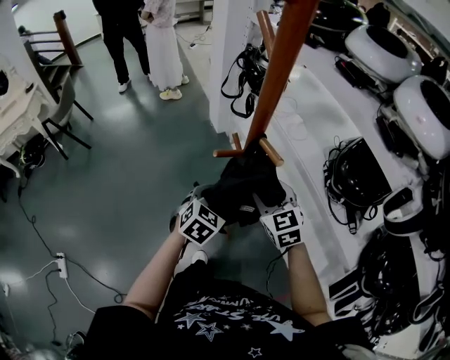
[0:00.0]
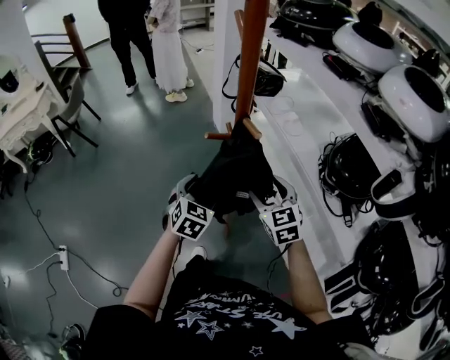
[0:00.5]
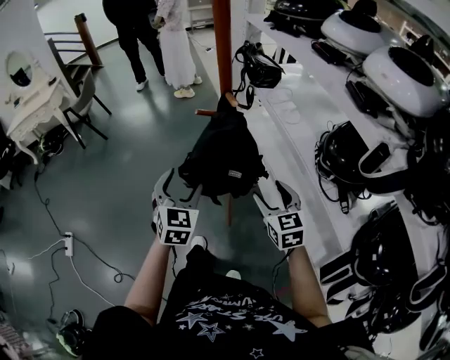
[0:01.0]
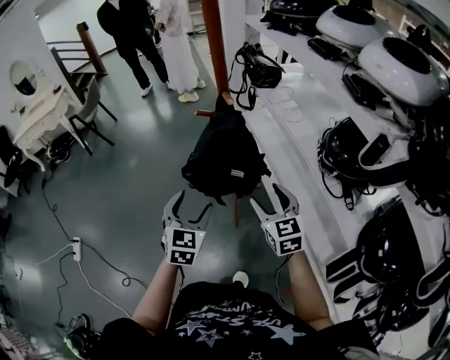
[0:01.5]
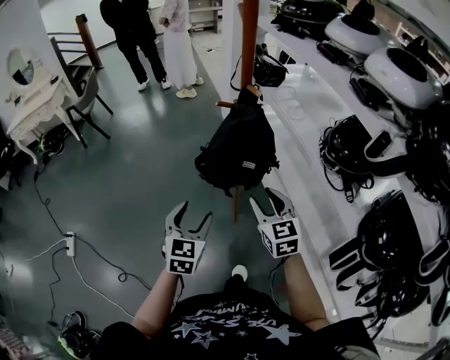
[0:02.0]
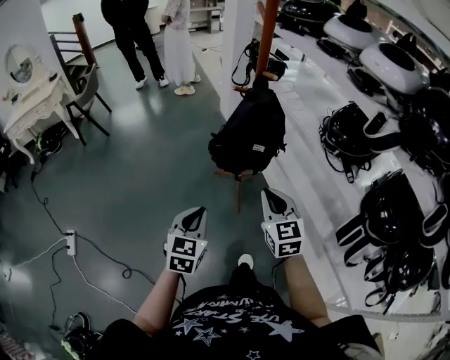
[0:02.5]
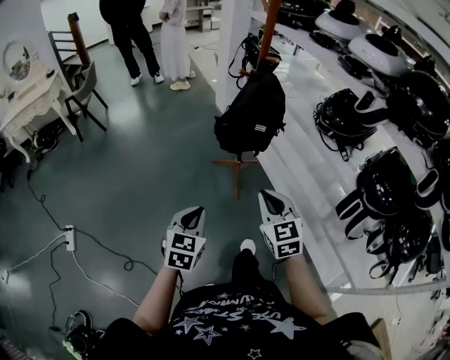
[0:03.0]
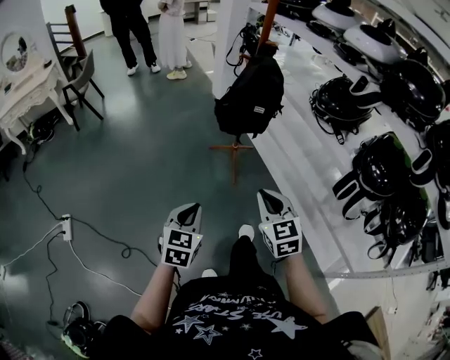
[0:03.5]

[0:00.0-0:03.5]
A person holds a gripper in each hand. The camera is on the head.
0:00.0 to 0:02.0: Both grippers move backward, about 25 cm. The left gripper turns by some 30 degrees.
0:02.0 to 0:03.5: The left gripper moves backward and to the left, some 30 cm, and closes its fingers; the right gripper heads backward, covering about 30 cm, and closes its fingers.

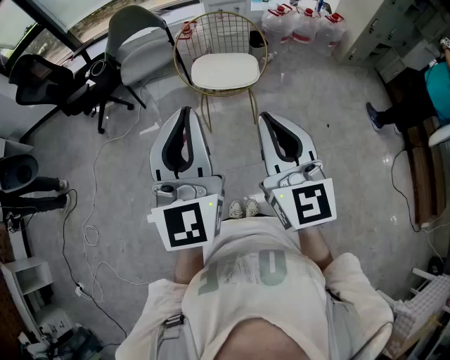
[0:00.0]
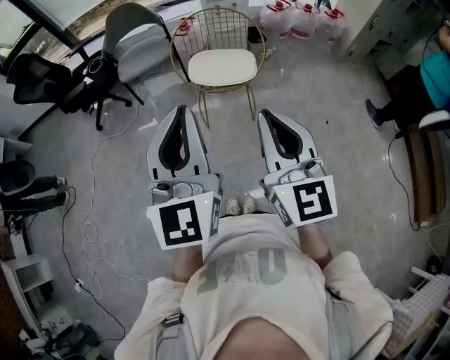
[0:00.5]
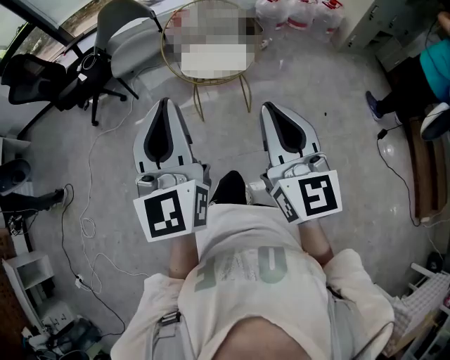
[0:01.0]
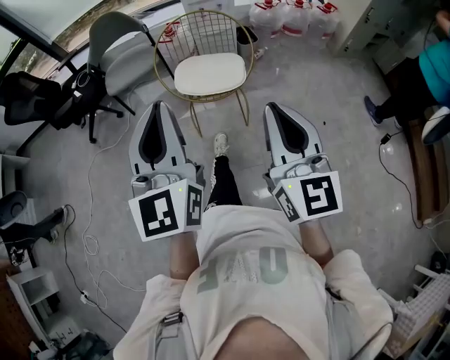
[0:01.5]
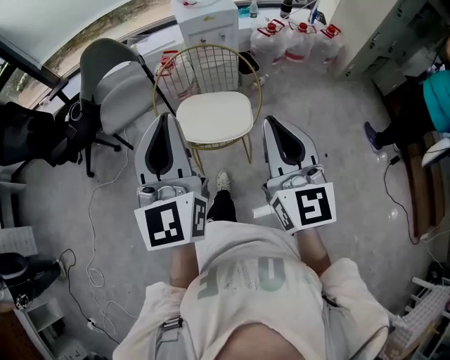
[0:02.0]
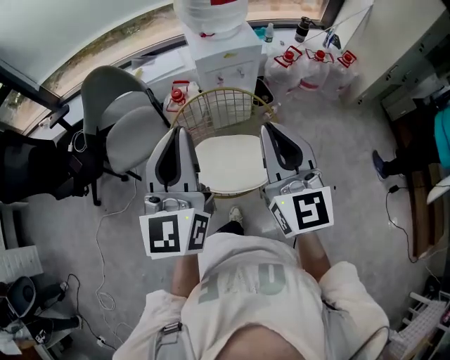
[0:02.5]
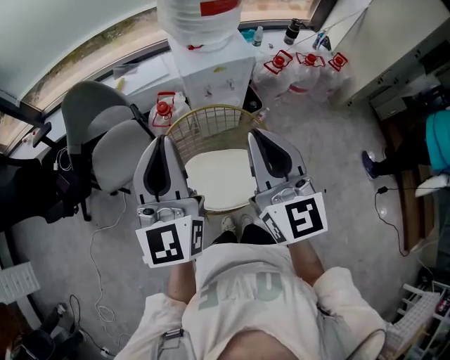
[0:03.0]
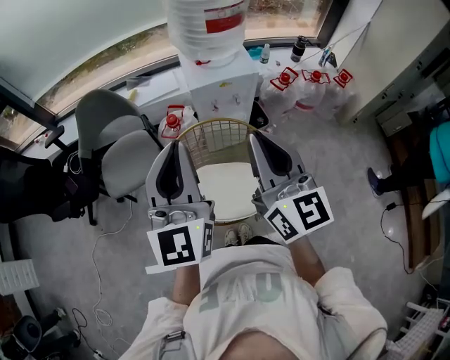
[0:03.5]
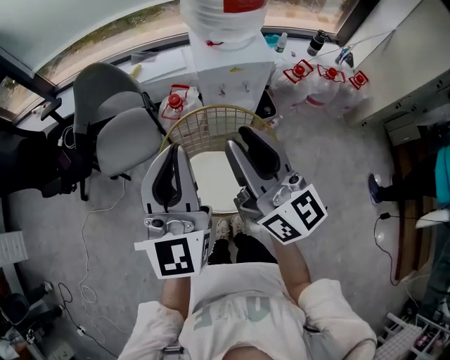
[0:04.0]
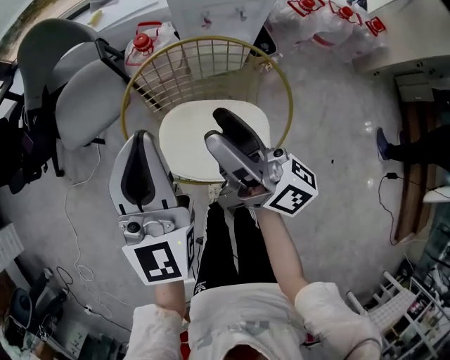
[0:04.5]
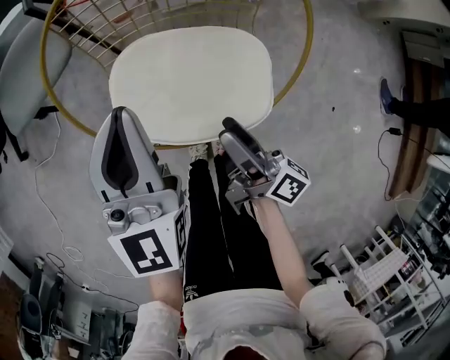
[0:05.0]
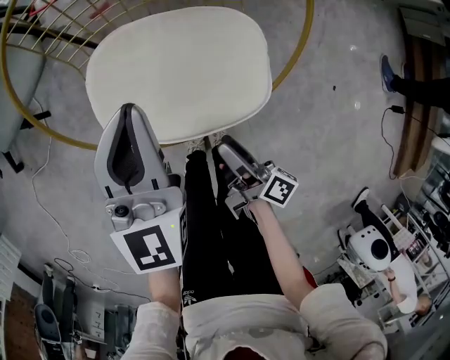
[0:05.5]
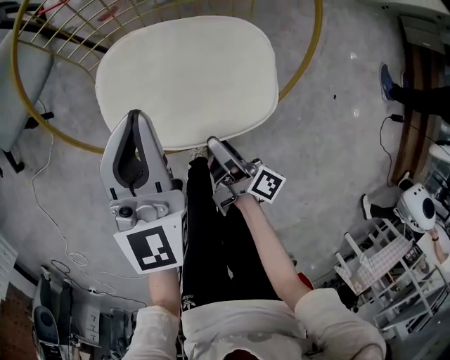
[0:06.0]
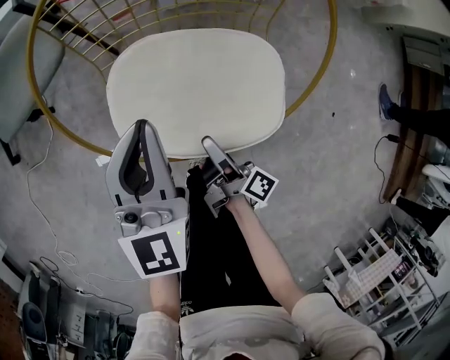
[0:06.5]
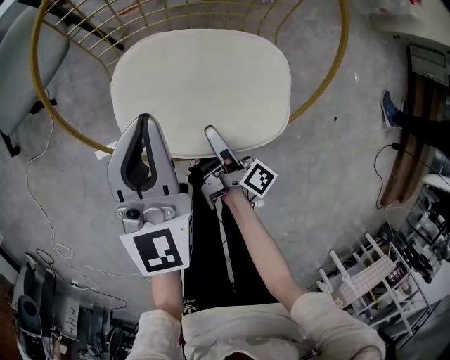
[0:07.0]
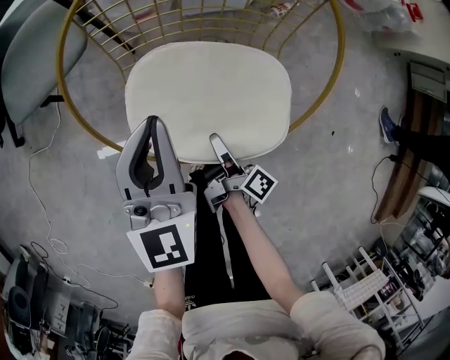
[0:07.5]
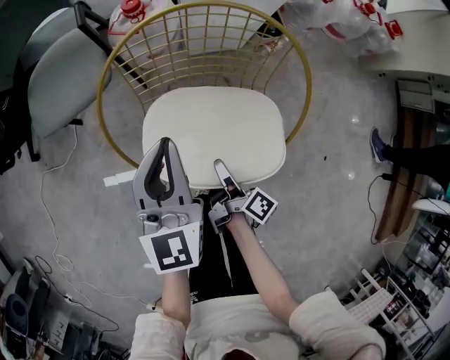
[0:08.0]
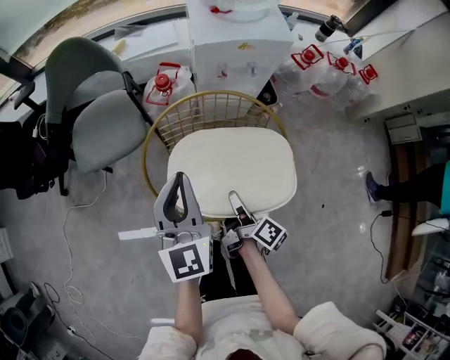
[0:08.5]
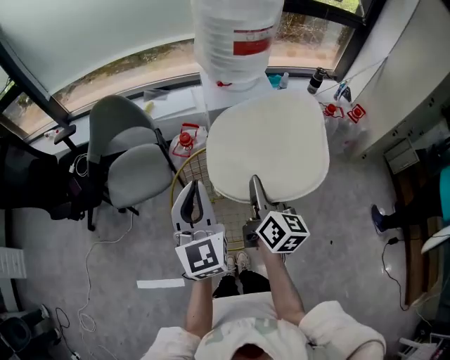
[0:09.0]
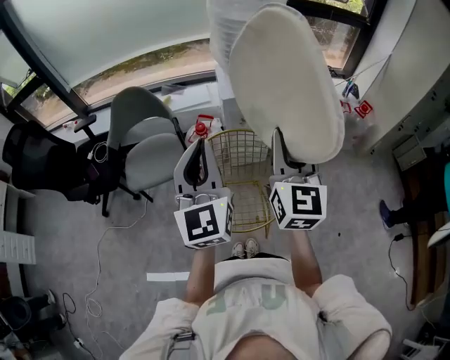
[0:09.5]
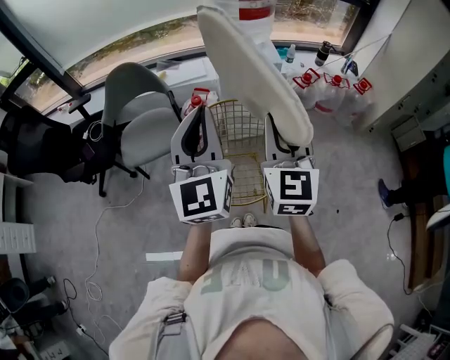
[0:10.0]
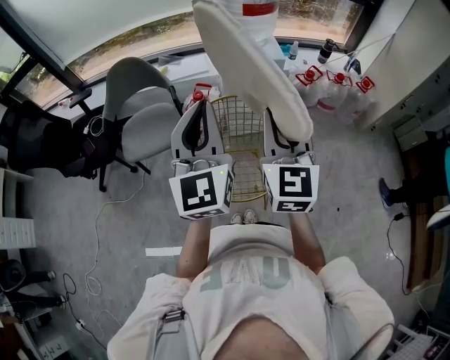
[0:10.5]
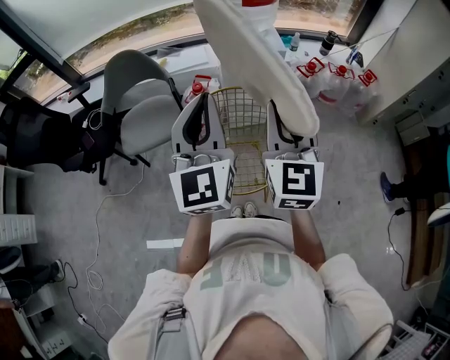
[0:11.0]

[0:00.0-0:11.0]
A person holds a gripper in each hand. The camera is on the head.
0:00.0 to 0:02.0: Both grippers travel together forward, about 30 cm.
0:02.0 to 0:03.5: The grippers both shift forward by about 30 cm.
0:03.5 to 0:05.5: Both grippers travel together downward, roughly 50 cm. The right gripper rolls clockwise, seen from behind, by approximately 70 degrees, and opens up; the left gripper swivels approximately 20 degrees.
0:05.5 to 0:07.5: The left gripper moves some 5 cm. Meanwhile the right gripper goes about 10 cm forward, and closes its fingers.
0:07.5 to 0:09.0: Both grippers travel together upward, approximately 40 cm. The right gripper rolls counterclockwise, seen from behind, by some 60 degrees.
0:09.0 to 0:11.0: The right gripper goes about 15 cm upward and backward, and rolls counterclockwise, seen from behind, by about 40 degrees, while the left gripper moves upward, approximately 10 cm.

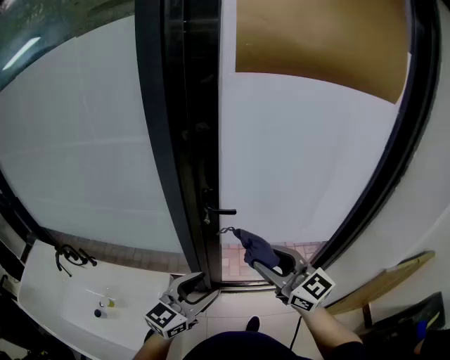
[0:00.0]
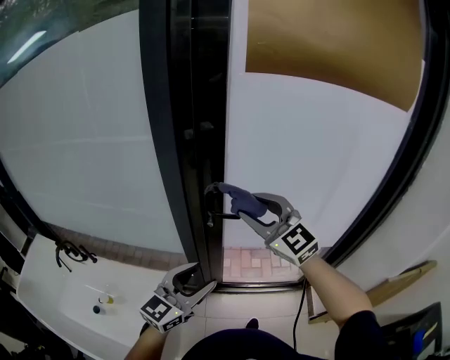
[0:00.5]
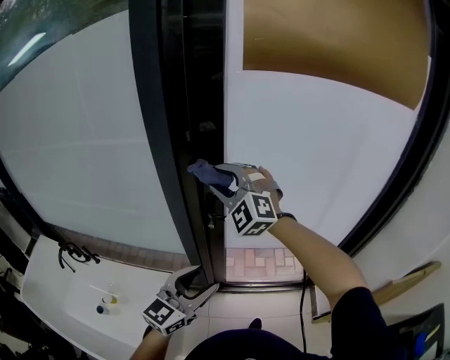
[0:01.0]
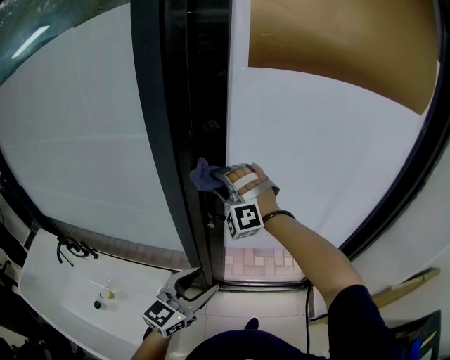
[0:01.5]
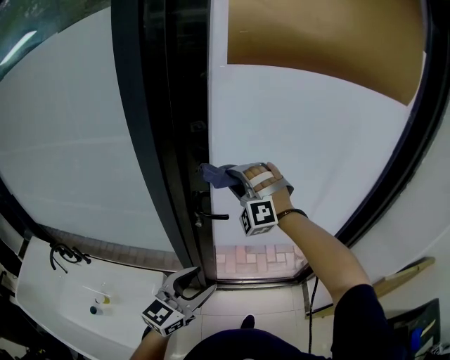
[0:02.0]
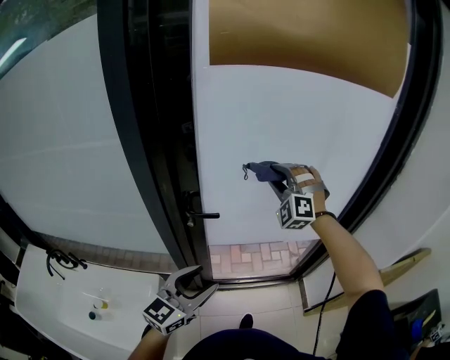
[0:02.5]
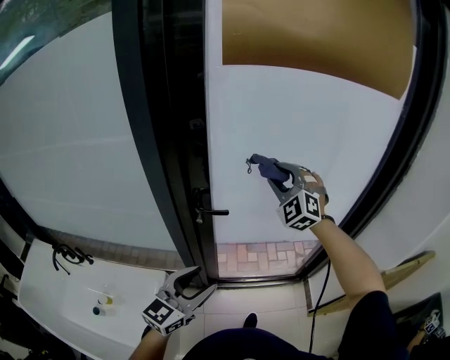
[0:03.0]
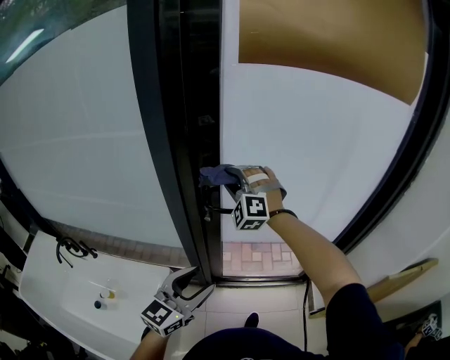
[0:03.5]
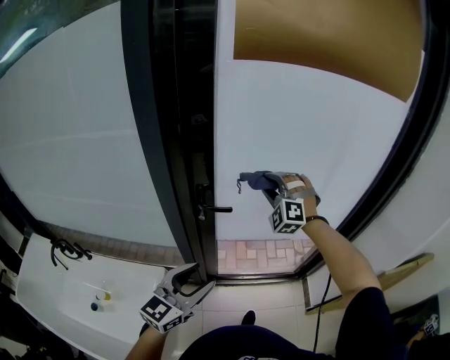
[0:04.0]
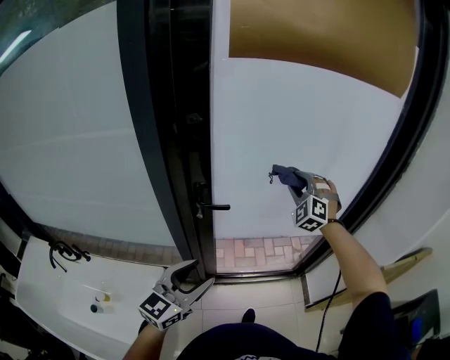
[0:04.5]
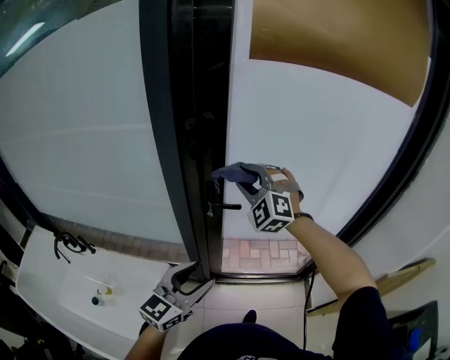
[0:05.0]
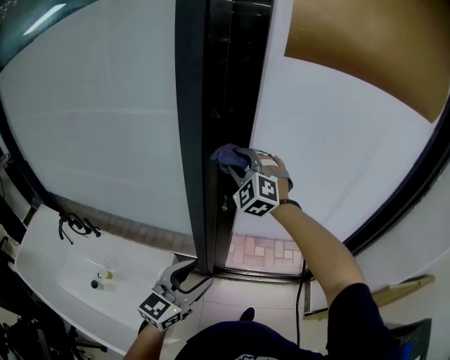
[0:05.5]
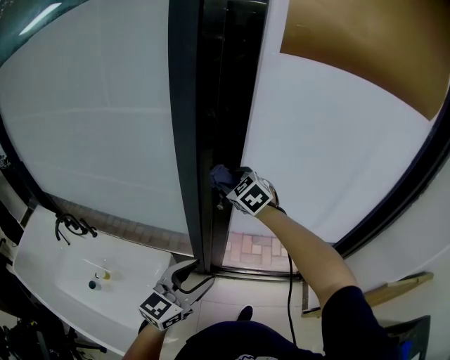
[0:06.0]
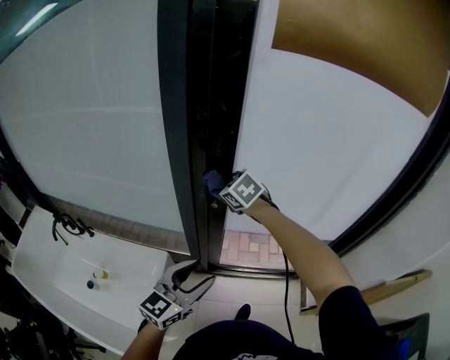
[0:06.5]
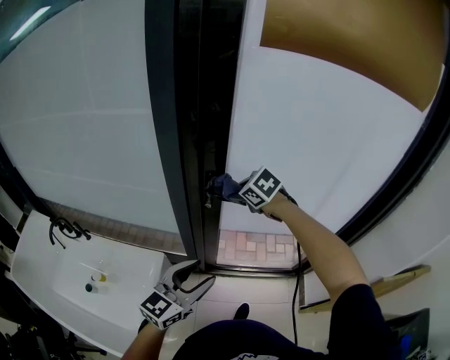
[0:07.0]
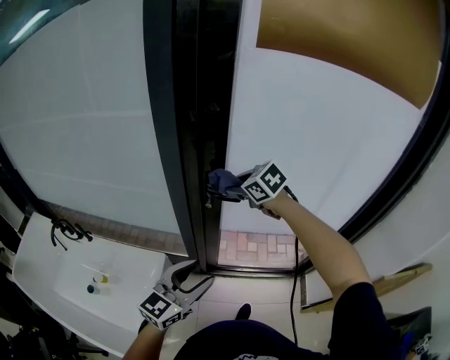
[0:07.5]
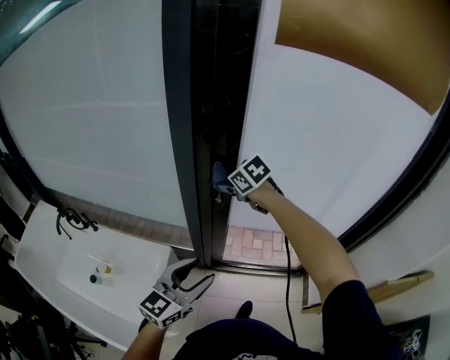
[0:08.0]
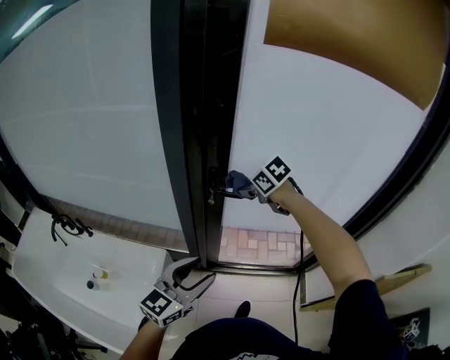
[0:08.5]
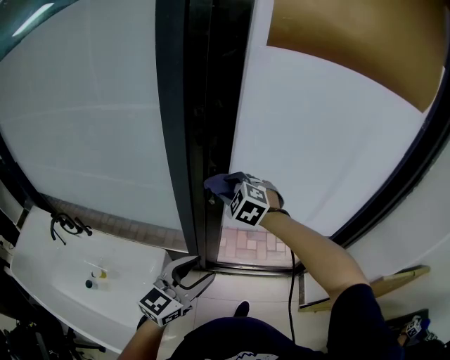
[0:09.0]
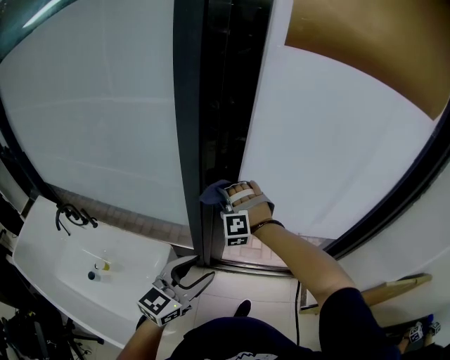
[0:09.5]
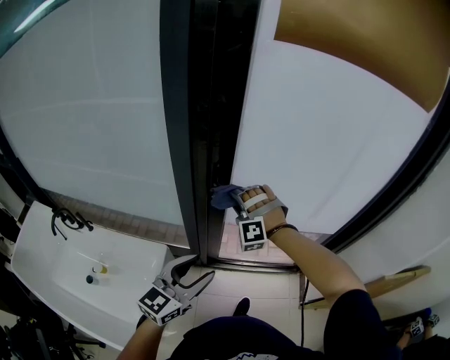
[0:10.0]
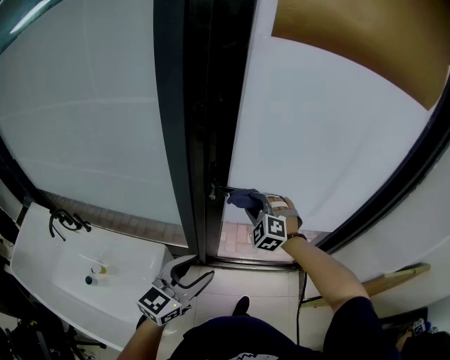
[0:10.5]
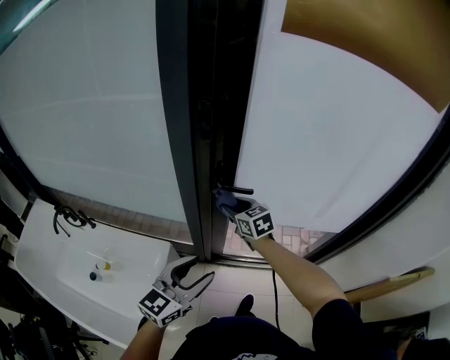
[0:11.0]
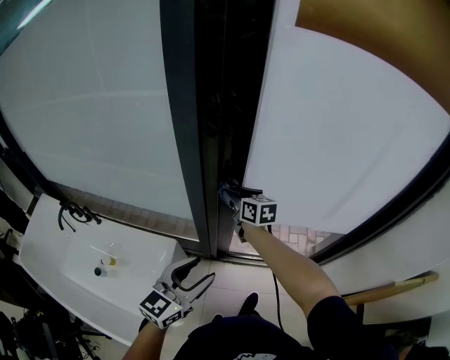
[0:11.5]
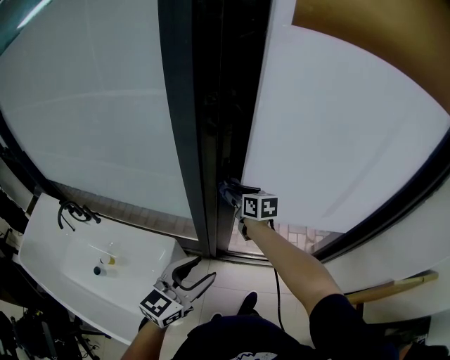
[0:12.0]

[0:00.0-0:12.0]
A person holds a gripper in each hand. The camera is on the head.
0:00.0 to 0:02.0: The left gripper goes roughly 5 cm forward, while the right gripper goes approximately 25 cm forward, and twists some 80 degrees counterclockwise, seen from behind.
0:02.0 to 0:04.0: The right gripper moves left and right over roughly 20 cm, changing direction 2 times.
0:04.0 to 0:06.0: The right gripper moves to the left, approximately 20 cm, and turns by roughly 50 degrees.
0:06.0 to 0:08.0: The right gripper goes to the right and returns, approximately 10 cm each way, and swivels about 30 degrees.
0:08.0 to 0:10.0: The right gripper goes left and right, roughly 10 cm each way, reversing 2 times, and rolls counterclockwise, seen from behind, by roughly 80 degrees.
0:10.0 to 0:12.0: The right gripper shifts approximately 5 cm forward, reaches roughly 5 cm to the right, then returns, and rotates around the line of its fingers by some 110 degrees, clockwise from behind.
